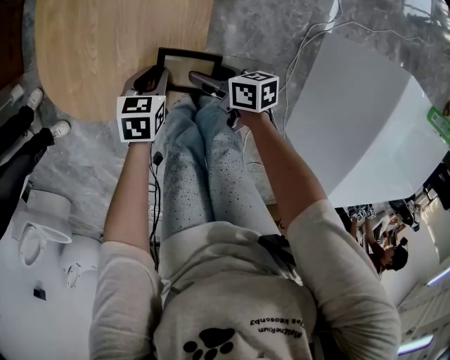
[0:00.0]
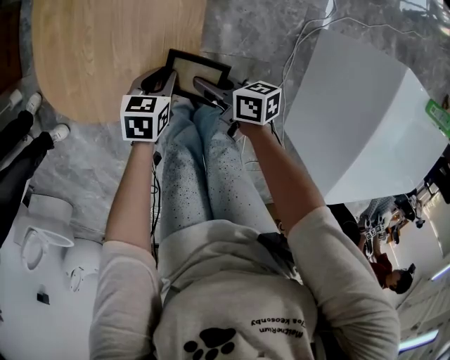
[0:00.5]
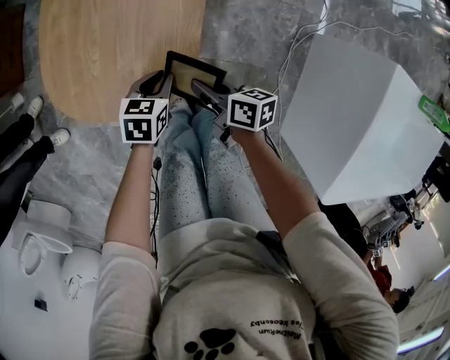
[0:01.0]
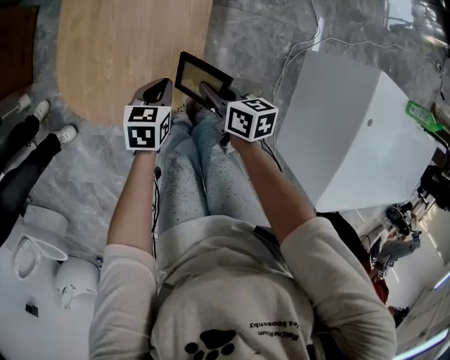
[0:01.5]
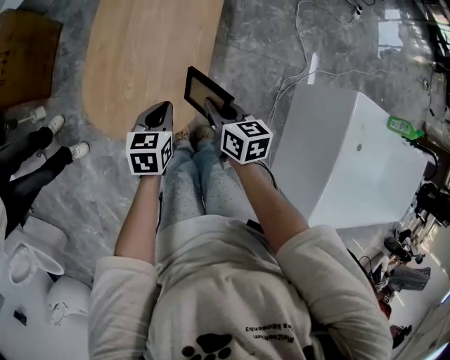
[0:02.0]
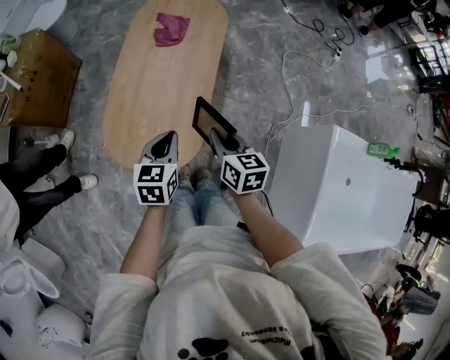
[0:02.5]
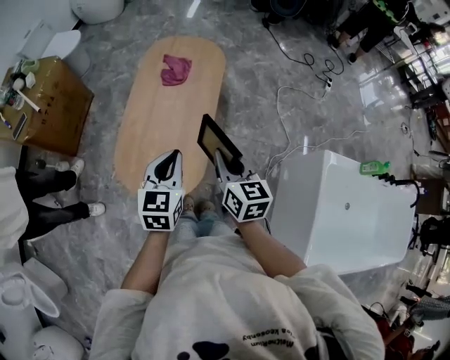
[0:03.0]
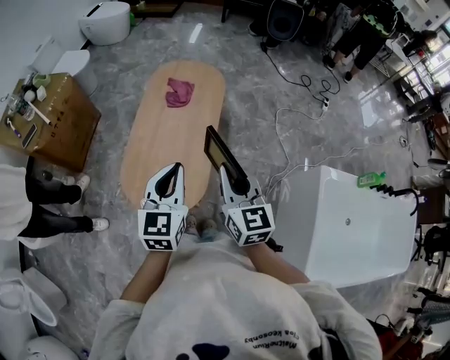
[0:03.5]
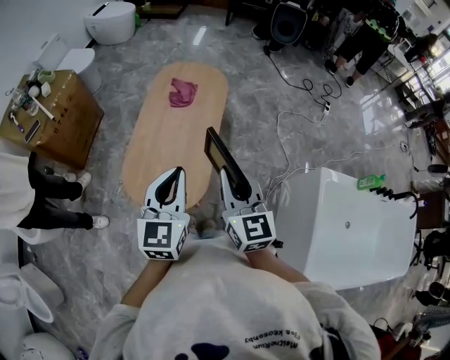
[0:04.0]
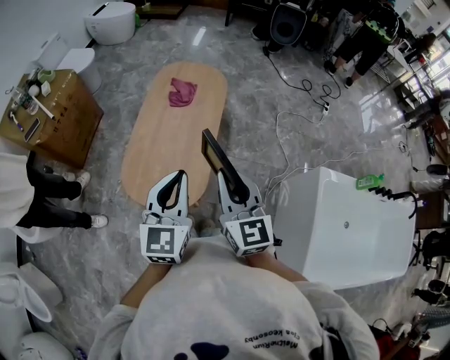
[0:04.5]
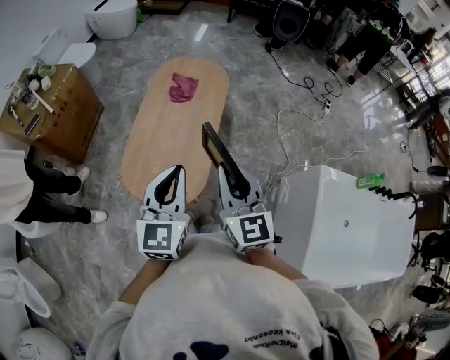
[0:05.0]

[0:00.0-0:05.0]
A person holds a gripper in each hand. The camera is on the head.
0.0 to 2.5 s: The grippers both shift upward by about 30 cm. The right gripper changes its angle by some 40 degrees, and closes its fingers, while the left gripper swivels some 30 degrees.
2.5 to 5.0 s: The two grippers go roughly 25 cm upward. The right gripper changes its angle by about 40 degrees. The left gripper swivels roughly 30 degrees.

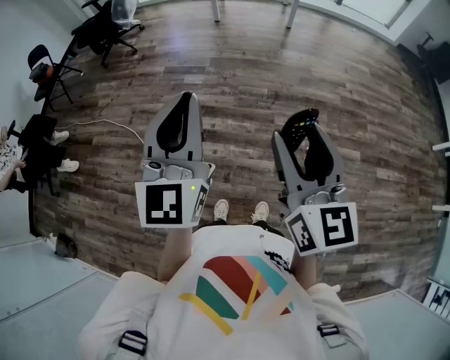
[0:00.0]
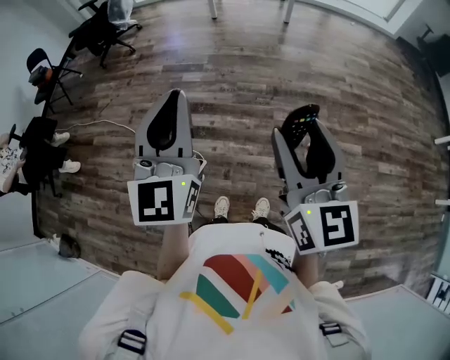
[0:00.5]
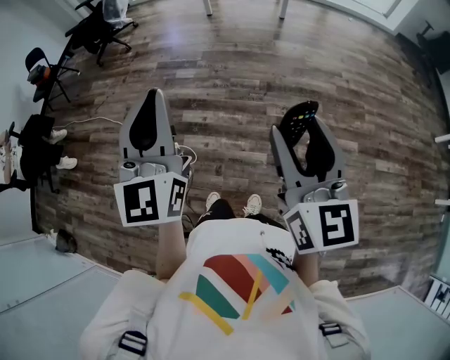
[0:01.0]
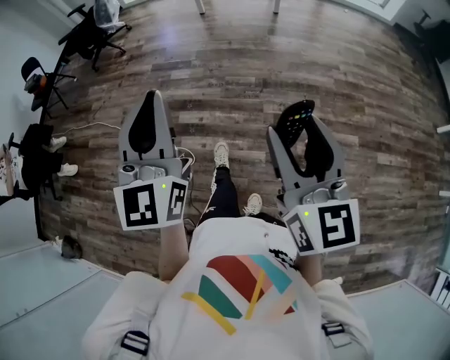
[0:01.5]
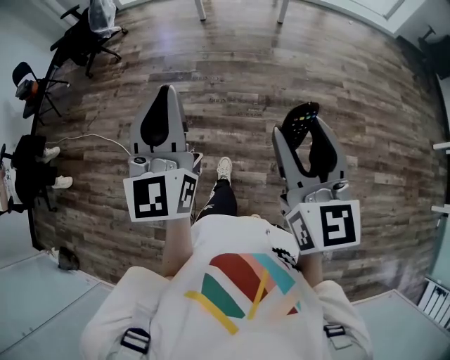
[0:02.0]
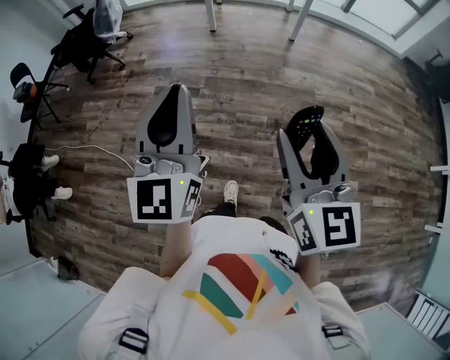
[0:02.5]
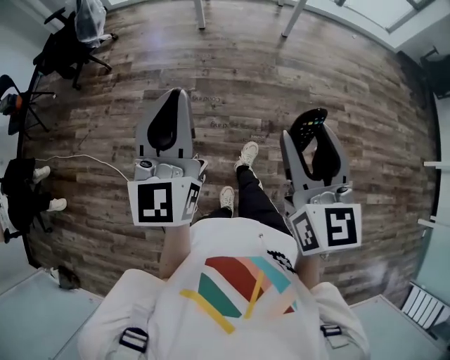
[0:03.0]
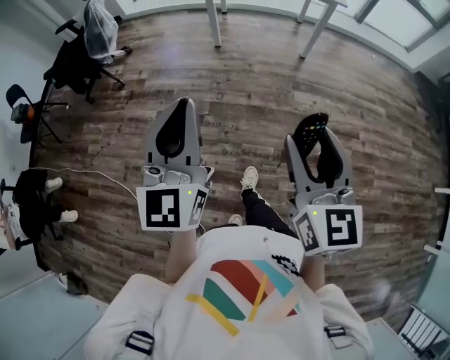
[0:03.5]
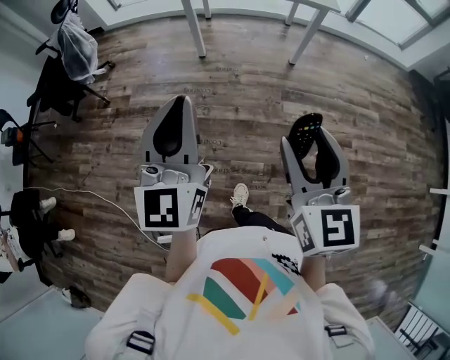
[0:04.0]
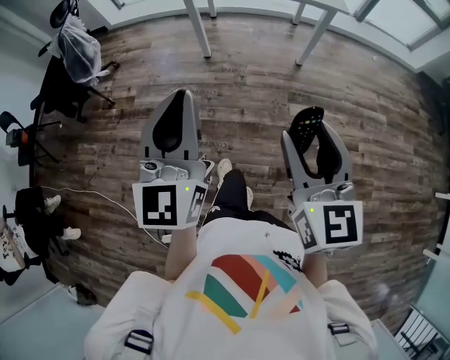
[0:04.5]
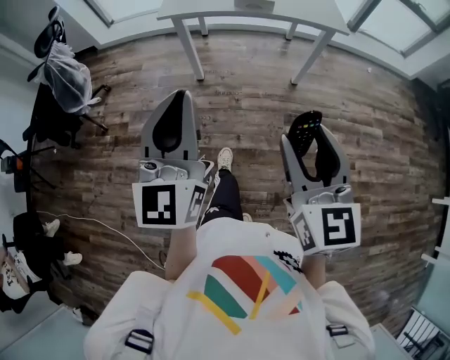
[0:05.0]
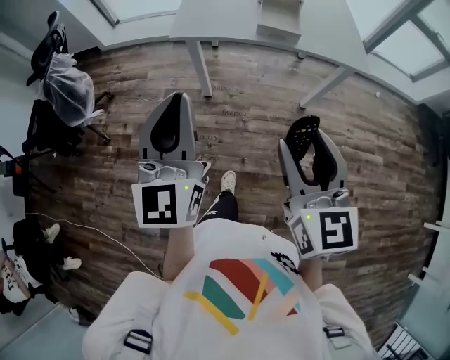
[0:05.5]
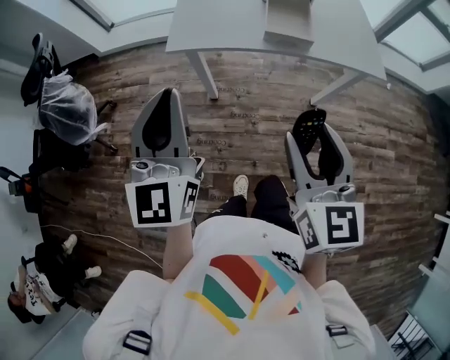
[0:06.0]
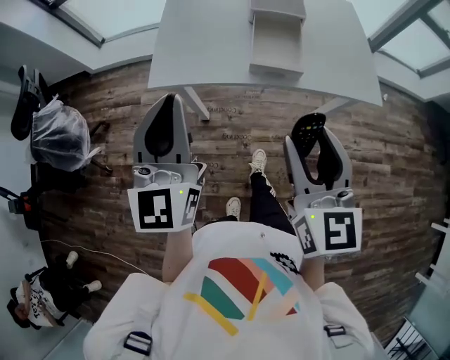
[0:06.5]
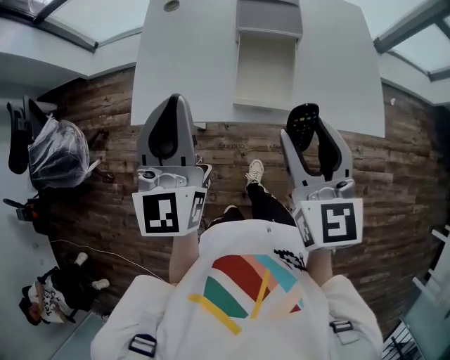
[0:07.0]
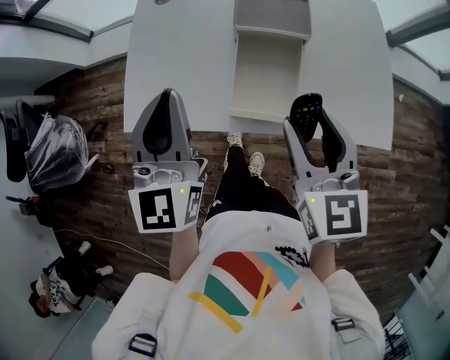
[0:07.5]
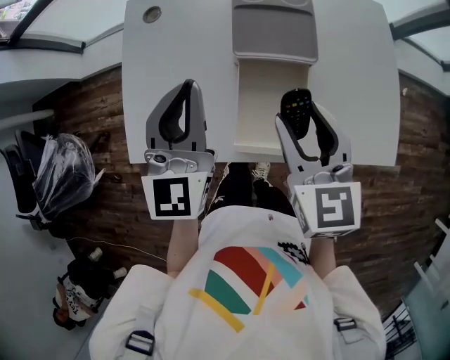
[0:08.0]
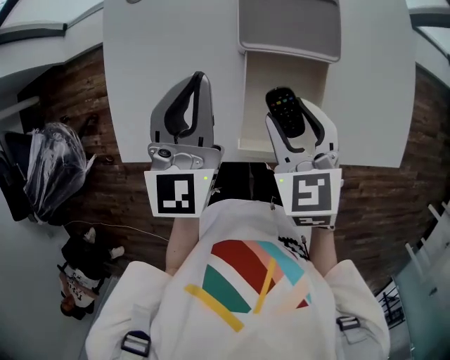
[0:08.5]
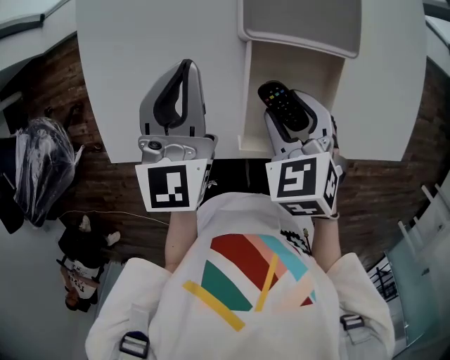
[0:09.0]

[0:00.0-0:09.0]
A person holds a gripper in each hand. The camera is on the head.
0.0 to 2.0 s: The right gripper shifts roughly 20 cm forward and to the right, while the left gripper moves forward, about 15 cm.
2.0 to 4.5 s: The pair of grippers is taken forward, roughly 60 cm.
4.5 to 7.0 s: Both grippers are carried forward, about 70 cm.
7.0 to 9.0 s: The left gripper is displaced forward and downward by some 30 cm, and swivels approximately 20 degrees. Meanwhile the right gripper moves downward and forward, about 30 cm, and angles its fingers downward, by some 50 degrees.

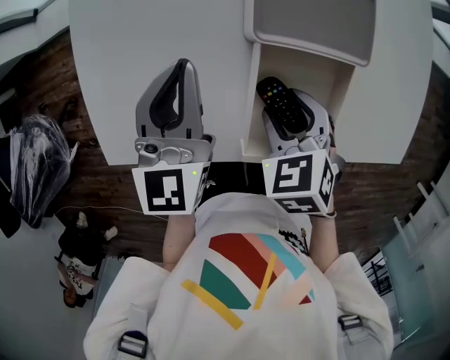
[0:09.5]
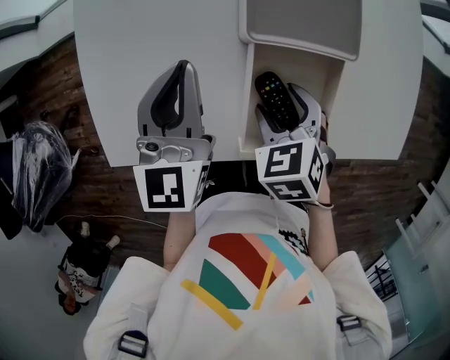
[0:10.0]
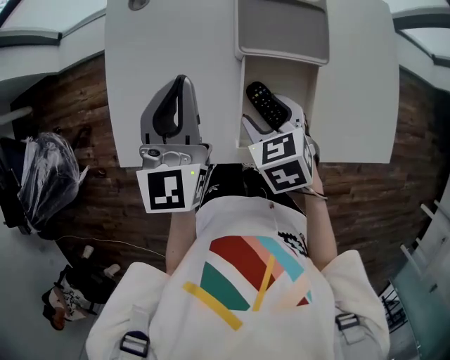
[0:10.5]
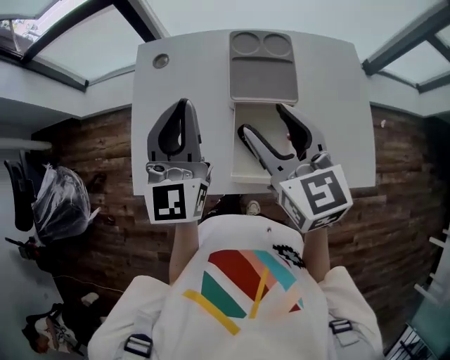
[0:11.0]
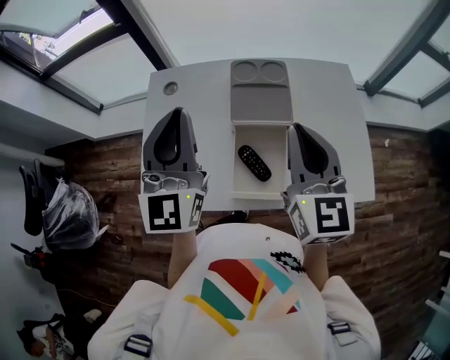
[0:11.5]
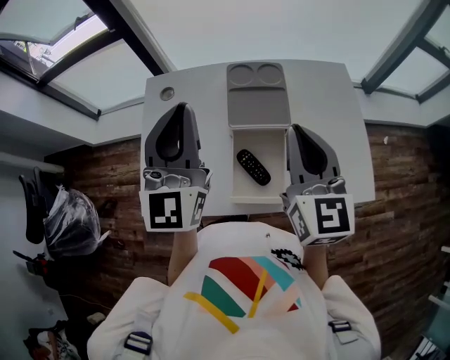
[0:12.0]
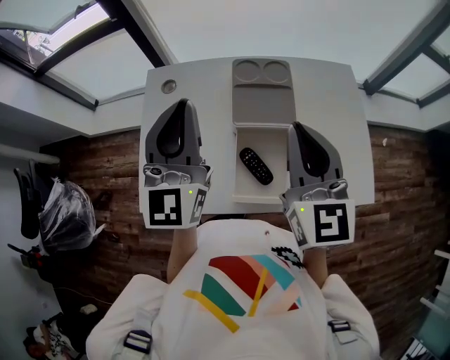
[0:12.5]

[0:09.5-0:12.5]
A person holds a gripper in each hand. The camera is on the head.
9.5 to 11.0 s: Both grippers move upward, roughly 20 cm. The left gripper rotates about 20 degrees; the right gripper angles its fingers upward, by some 50 degrees.
11.0 to 12.5 s: The right gripper is displaced upward and to the right by approximately 10 cm, rotates approximately 20 degrees, and closes; the left gripper shifts approximately 5 cm upward.

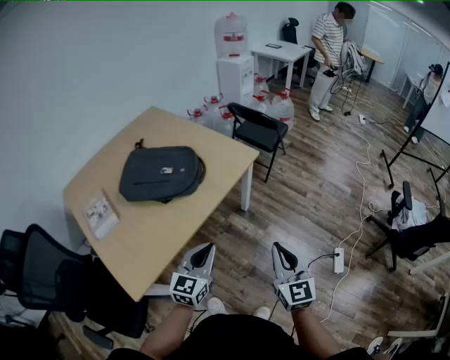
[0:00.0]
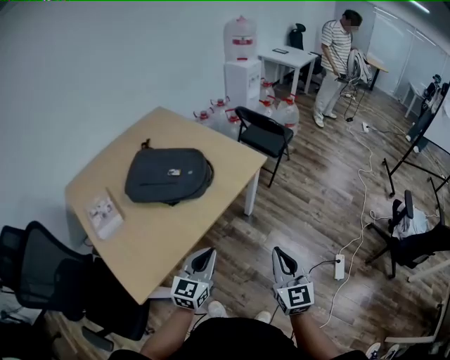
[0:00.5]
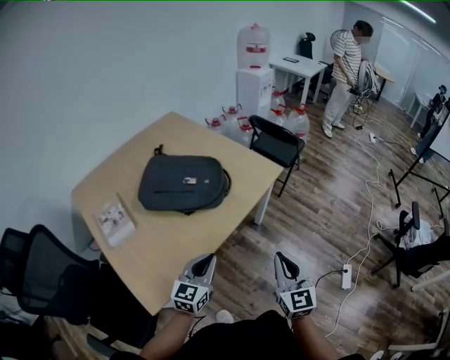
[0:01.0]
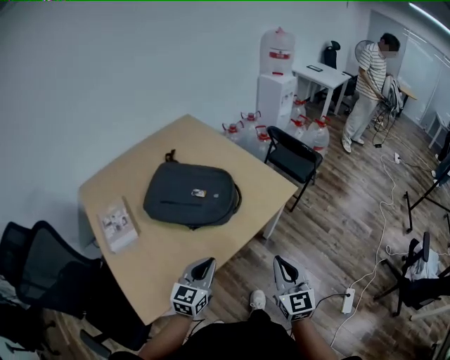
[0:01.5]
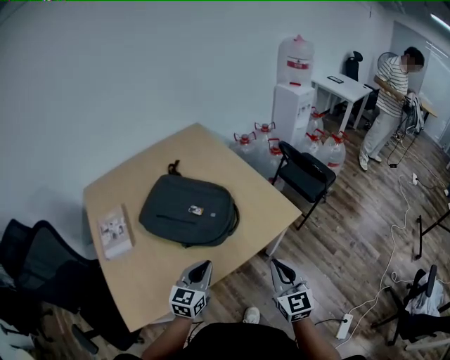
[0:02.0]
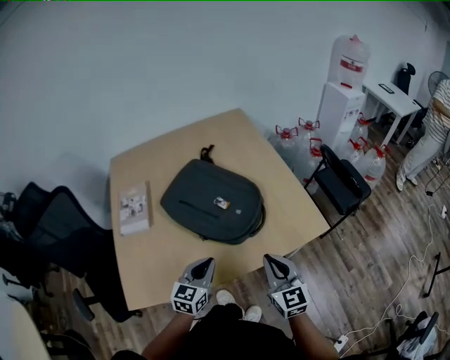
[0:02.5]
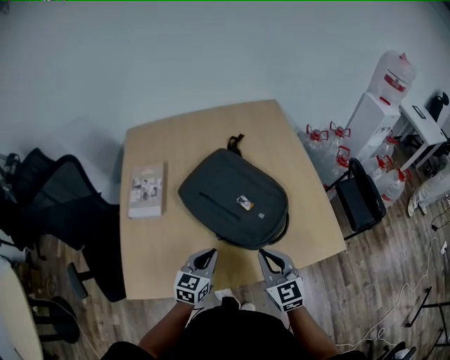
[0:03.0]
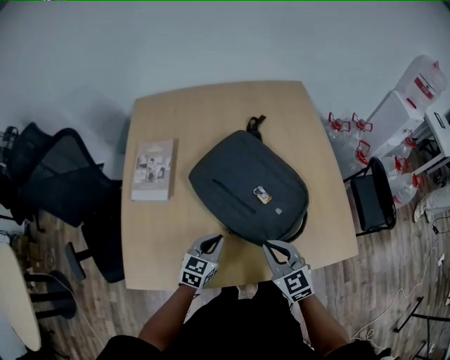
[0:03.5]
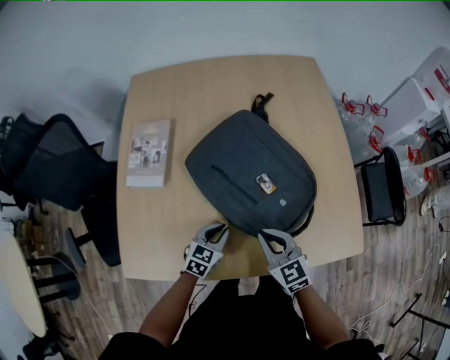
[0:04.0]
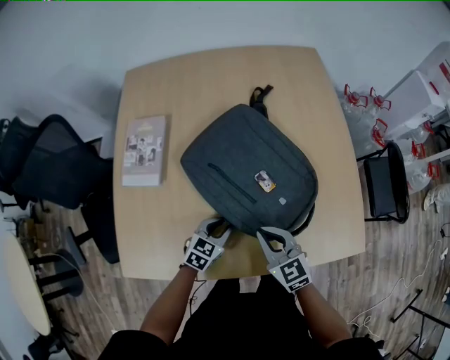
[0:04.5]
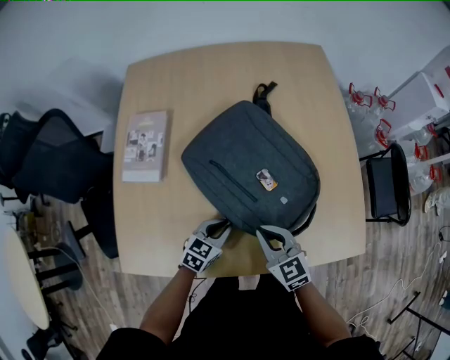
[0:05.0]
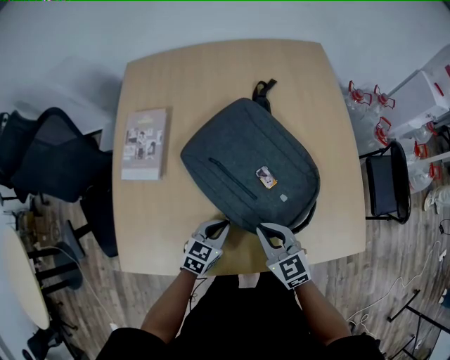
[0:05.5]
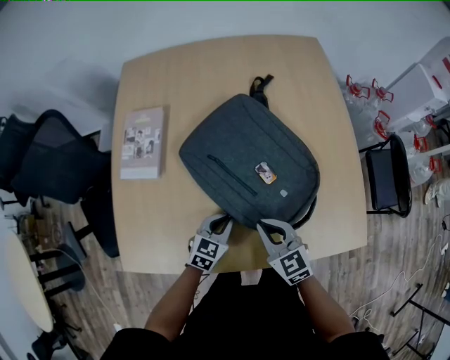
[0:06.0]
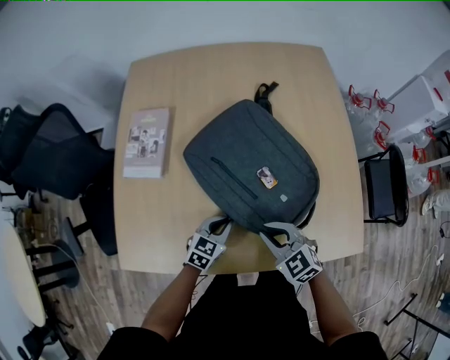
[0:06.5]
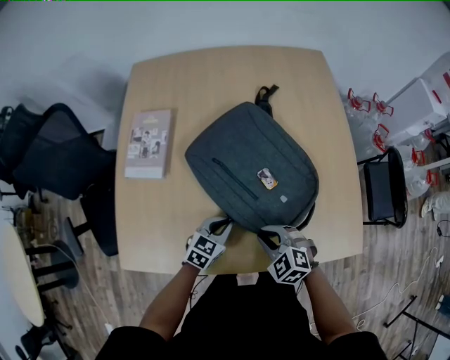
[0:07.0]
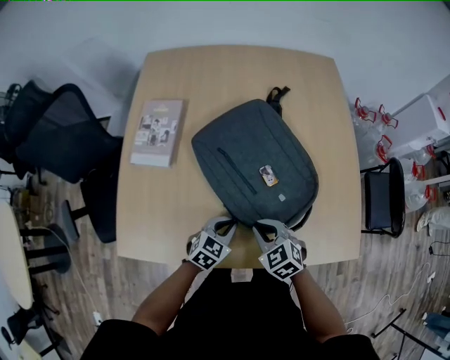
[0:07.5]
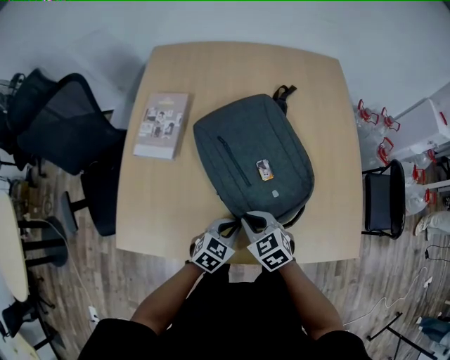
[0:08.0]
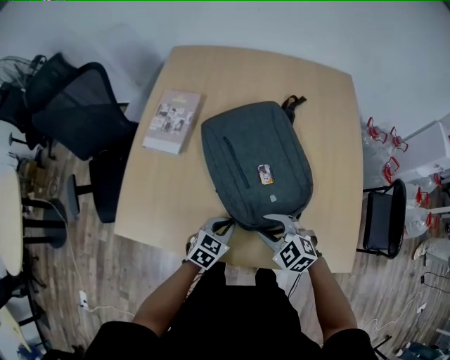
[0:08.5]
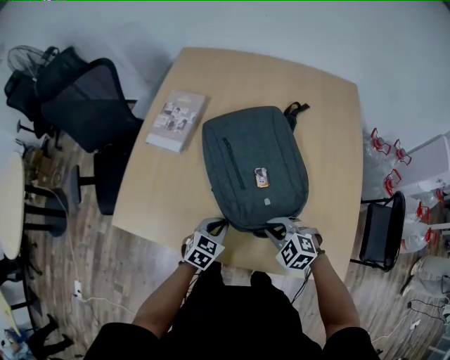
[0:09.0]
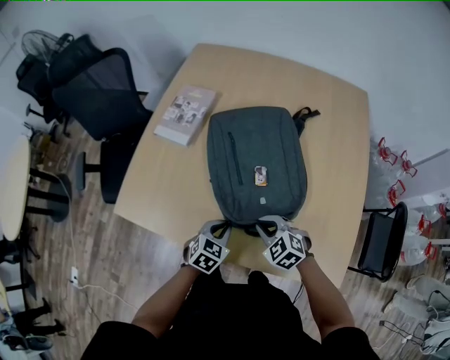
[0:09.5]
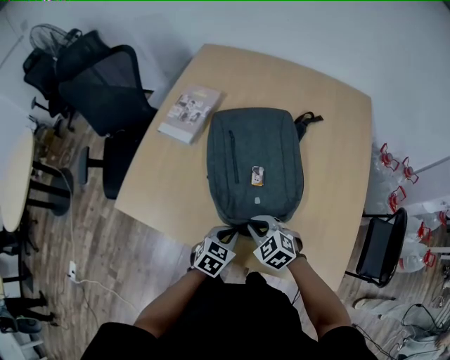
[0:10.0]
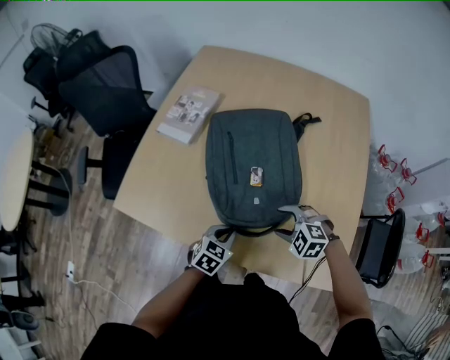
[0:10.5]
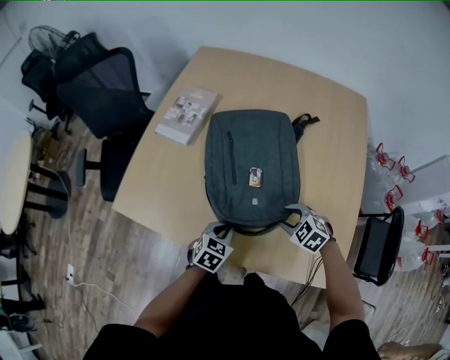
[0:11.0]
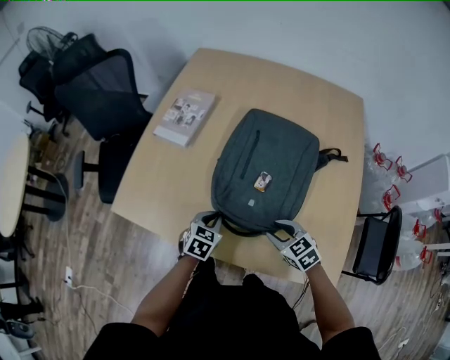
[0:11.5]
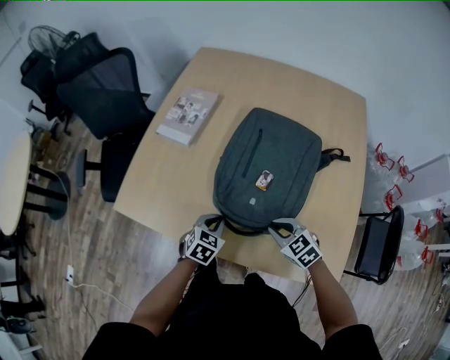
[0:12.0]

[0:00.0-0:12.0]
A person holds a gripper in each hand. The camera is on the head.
0.0 to 2.0 s: The left gripper shifts approximately 20 cm forward and to the left. Meanwhile the right gripper shifts roughly 25 cm forward.
2.0 to 4.0 s: The left gripper moves downward, some 15 cm, and changes its angle by roughly 30 degrees; the right gripper changes place by approximately 30 cm, and rotates approximately 50 degrees.
4.0 to 6.0 s: The grippers stay close to where they were, moving slightly.
6.0 to 8.0 s: The right gripper heads to the left, covering roughly 5 cm, and turns by approximately 20 degrees.
8.0 to 10.0 s: The right gripper rotates about 30 degrees, and opens and closes again. The left gripper swivels approximately 20 degrees.
10.0 to 12.0 s: The left gripper moves about 5 cm. The right gripper is displaced to the right by about 5 cm, and opens and closes again.
